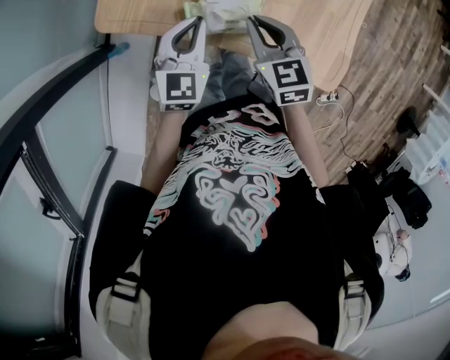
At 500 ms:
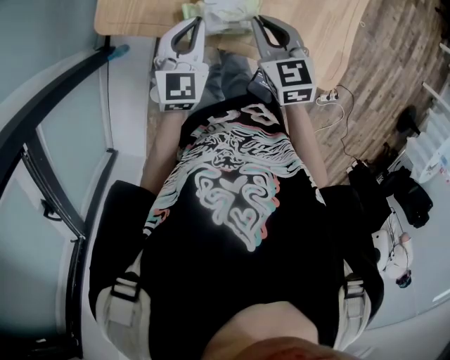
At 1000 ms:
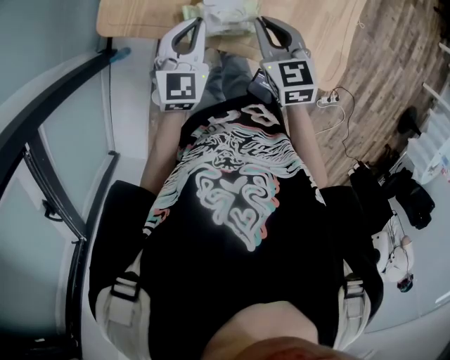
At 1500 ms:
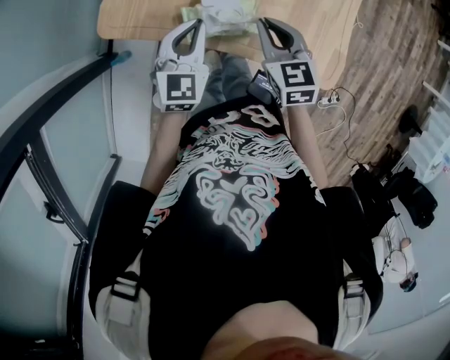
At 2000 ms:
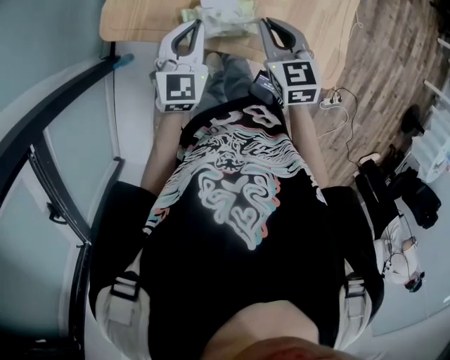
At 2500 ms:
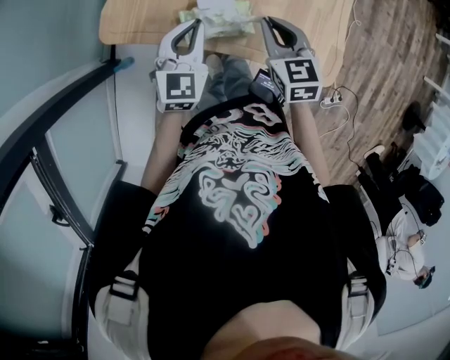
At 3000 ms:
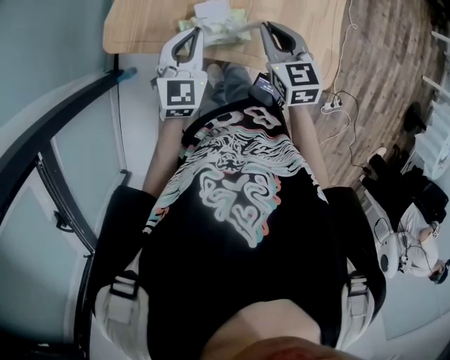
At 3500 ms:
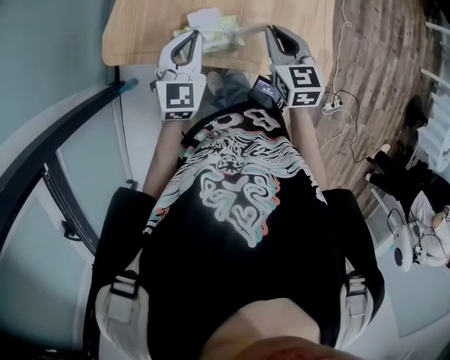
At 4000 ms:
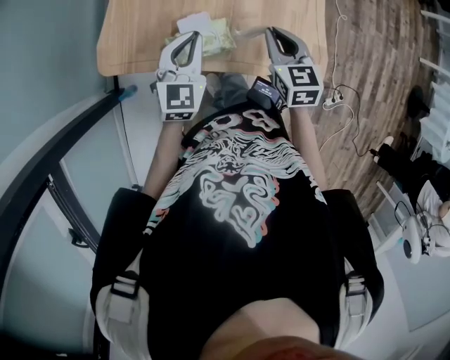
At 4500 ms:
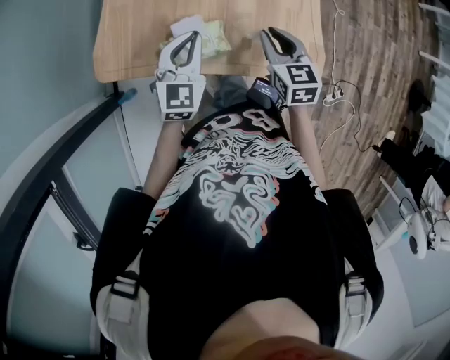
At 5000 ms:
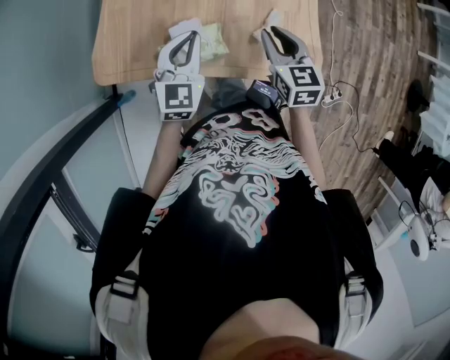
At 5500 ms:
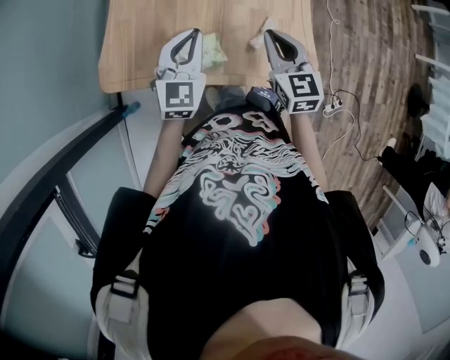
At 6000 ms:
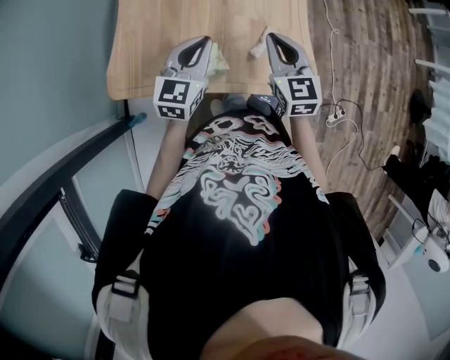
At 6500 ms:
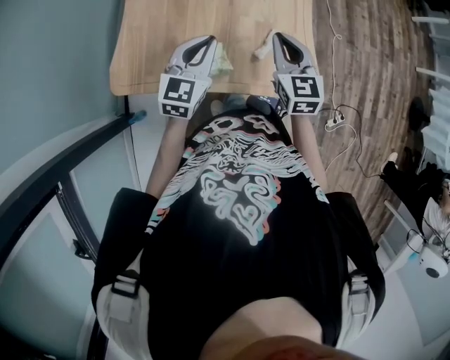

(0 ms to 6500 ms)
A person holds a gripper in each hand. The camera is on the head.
0 ms - 2000 ms: The grippers make only small movements.
2000 ms - 4500 ms: Both grippers travel together to the right, about 10 cm.
4500 ms - 6500 ms: The right gripper travels upward by approximately 10 cm. Meanwhile the left gripper goes approximately 5 cm upward.

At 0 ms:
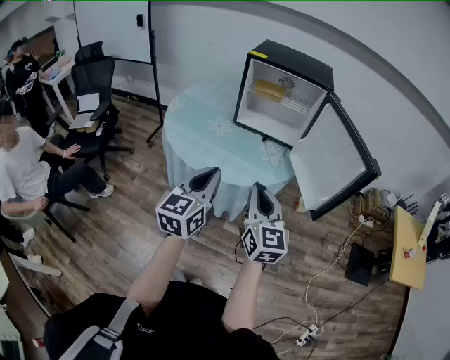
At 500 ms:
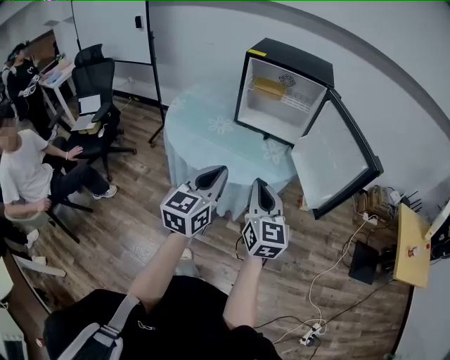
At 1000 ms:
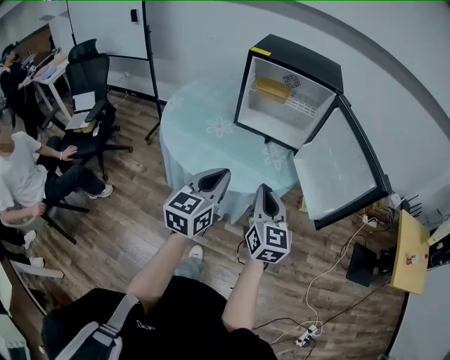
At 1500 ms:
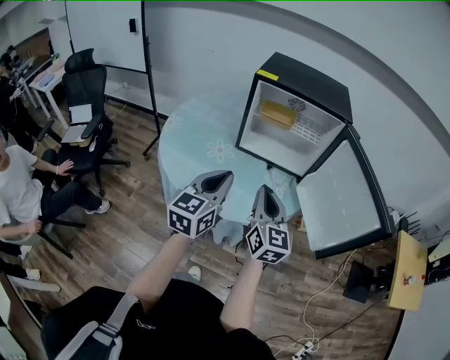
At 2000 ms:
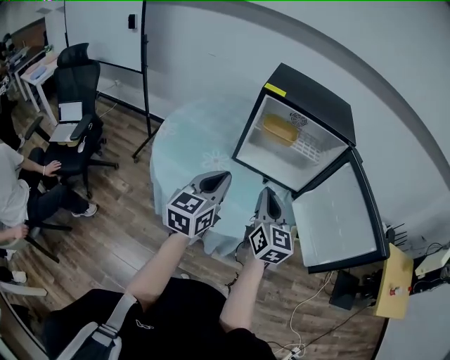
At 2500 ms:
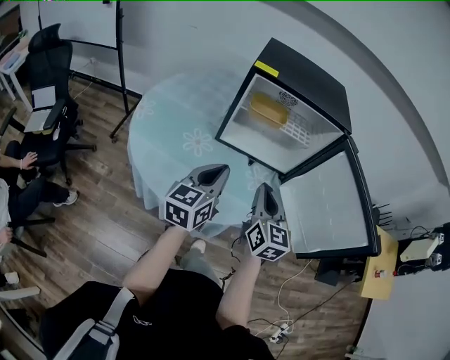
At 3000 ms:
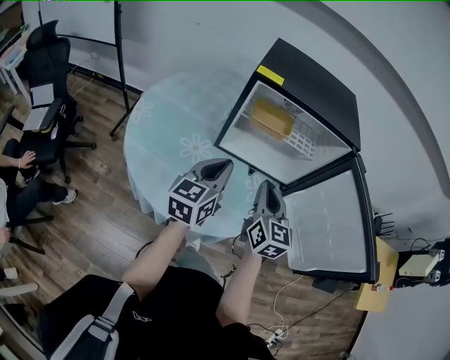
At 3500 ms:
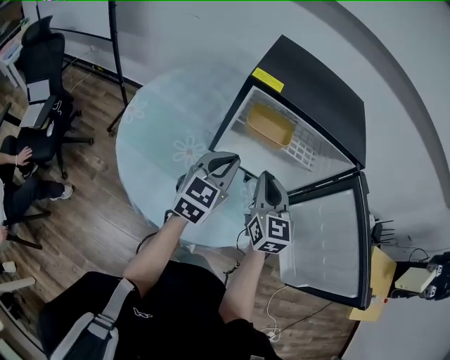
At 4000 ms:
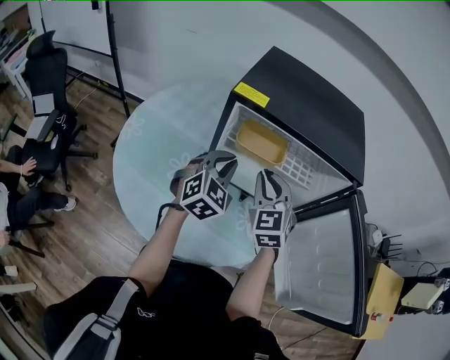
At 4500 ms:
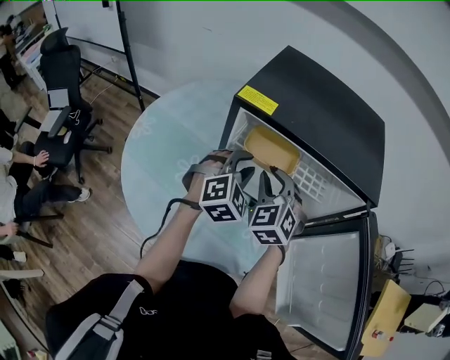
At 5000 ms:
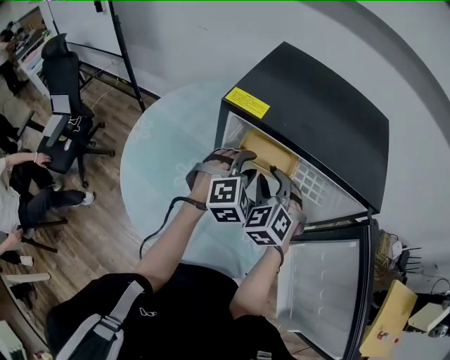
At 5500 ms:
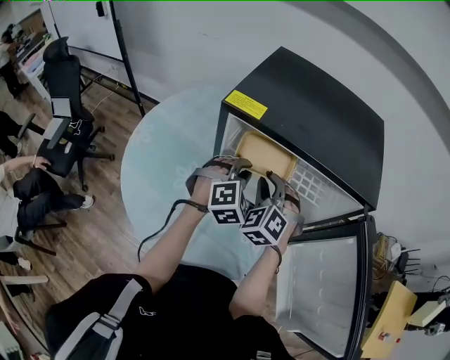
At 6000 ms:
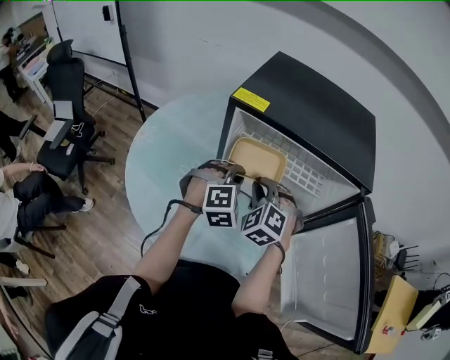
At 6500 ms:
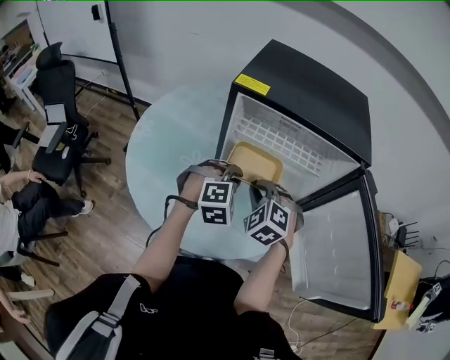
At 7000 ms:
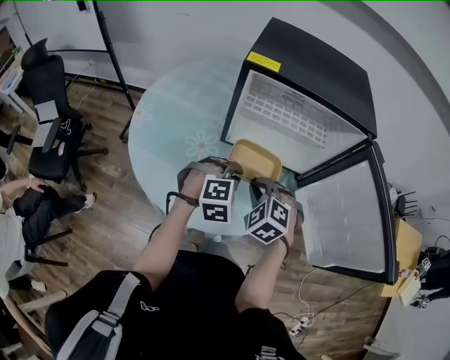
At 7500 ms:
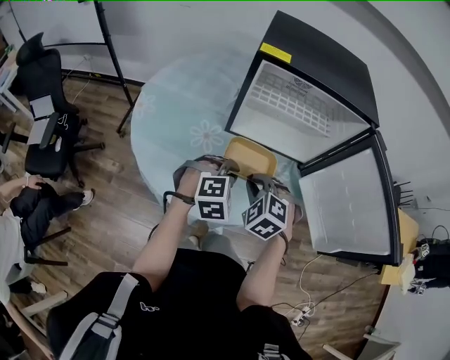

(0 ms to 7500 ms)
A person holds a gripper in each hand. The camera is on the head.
0 ms - 2000 ms: Both grippers move forward, about 25 cm.
2000 ms - 4000 ms: The two grippers go about 25 cm forward. The left gripper turns by approximately 40 degrees. Meanwhile the right gripper rotates approximately 40 degrees.
4000 ms - 5500 ms: The two grippers go some 10 cm forward and downward. The right gripper changes its angle by some 30 degrees. Meanwhile the left gripper rotates about 30 degrees, and opens, then closes again.
5500 ms - 7500 ms: The grippers both shift backward by some 25 cm. The right gripper turns by about 20 degrees; the left gripper changes its angle by about 20 degrees.

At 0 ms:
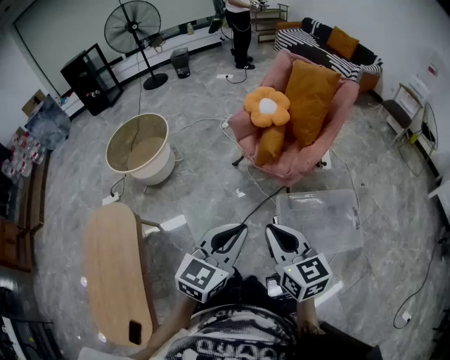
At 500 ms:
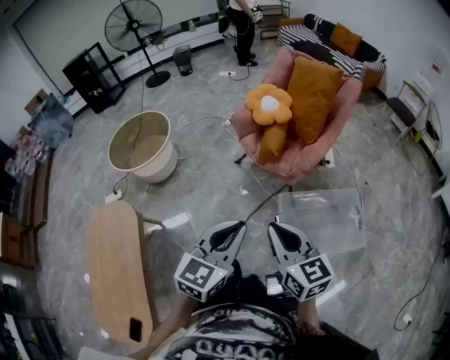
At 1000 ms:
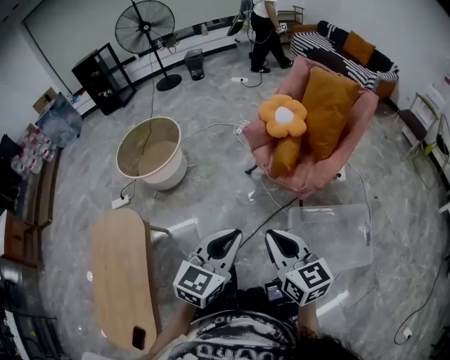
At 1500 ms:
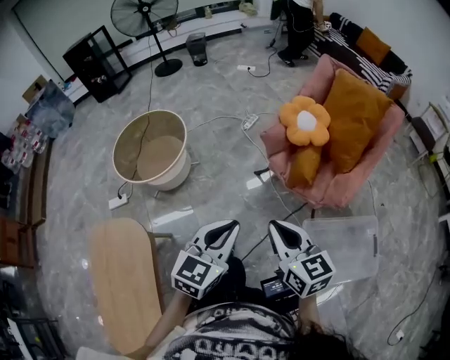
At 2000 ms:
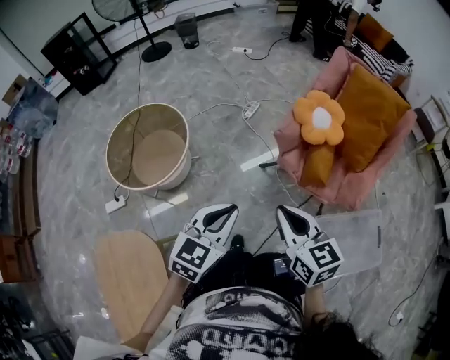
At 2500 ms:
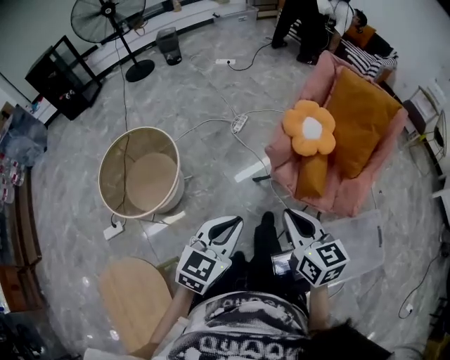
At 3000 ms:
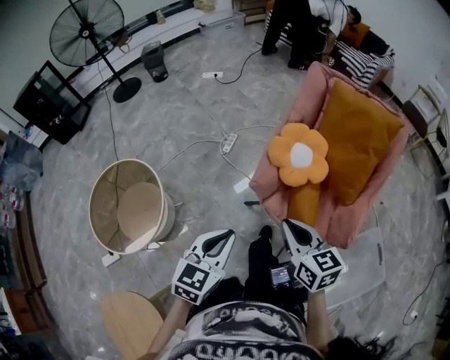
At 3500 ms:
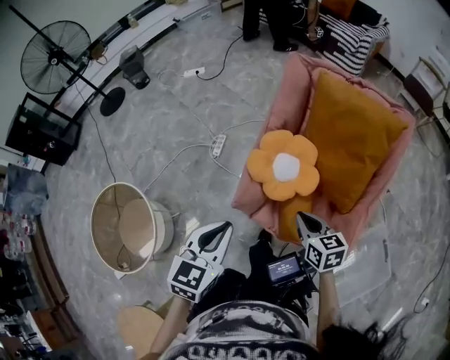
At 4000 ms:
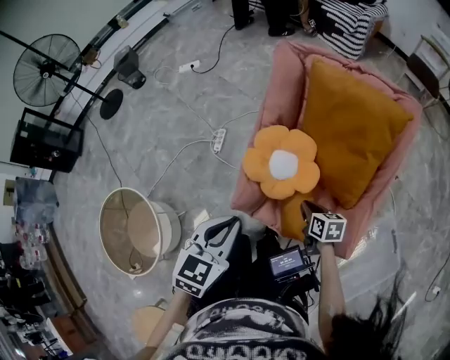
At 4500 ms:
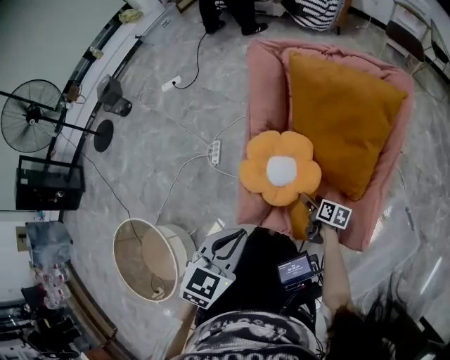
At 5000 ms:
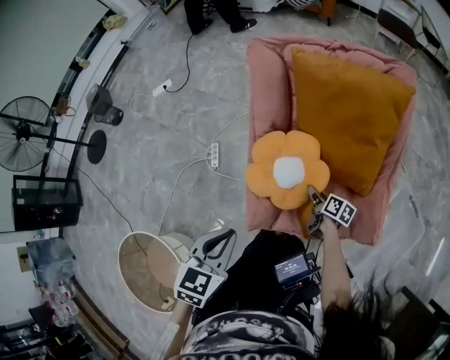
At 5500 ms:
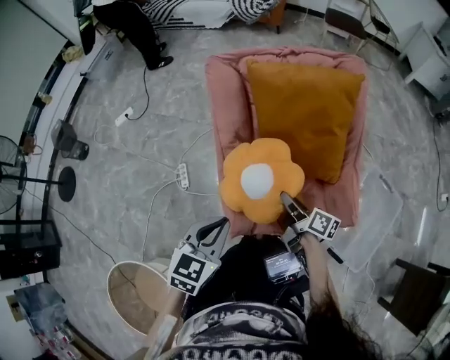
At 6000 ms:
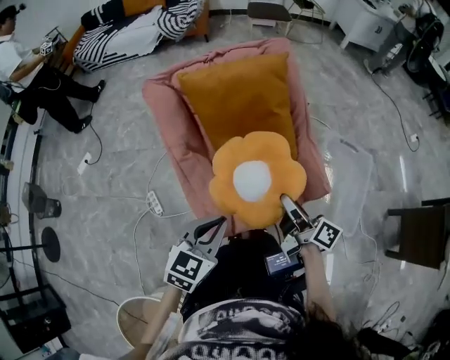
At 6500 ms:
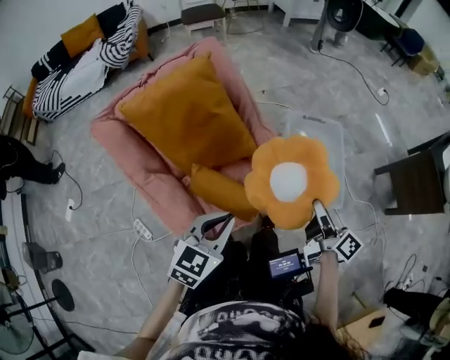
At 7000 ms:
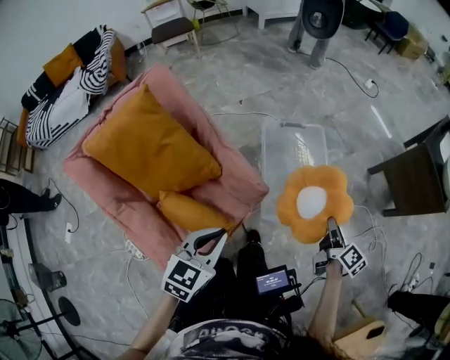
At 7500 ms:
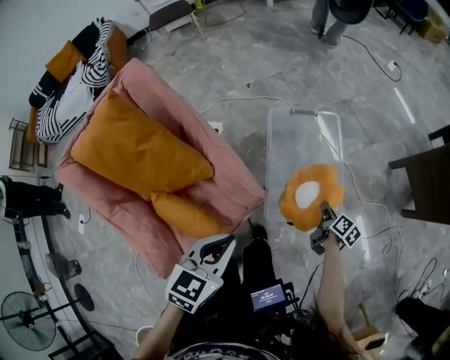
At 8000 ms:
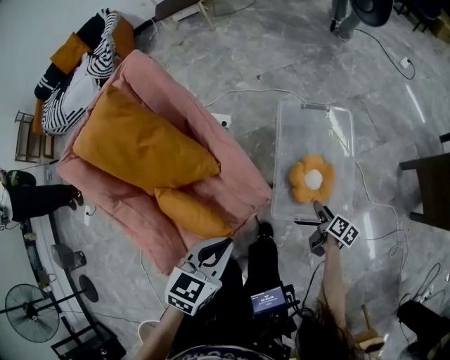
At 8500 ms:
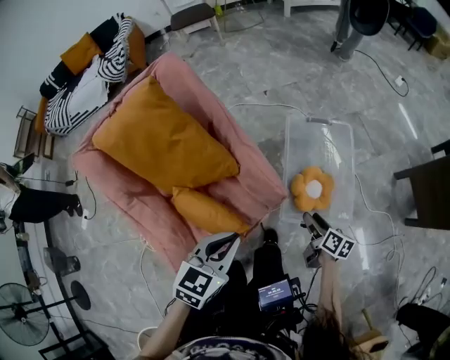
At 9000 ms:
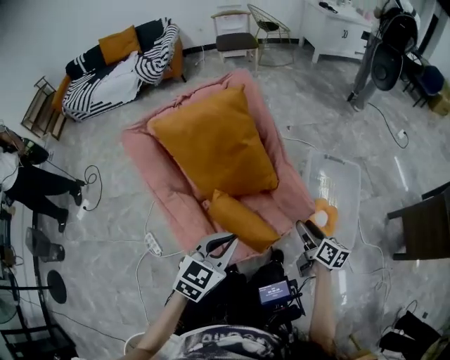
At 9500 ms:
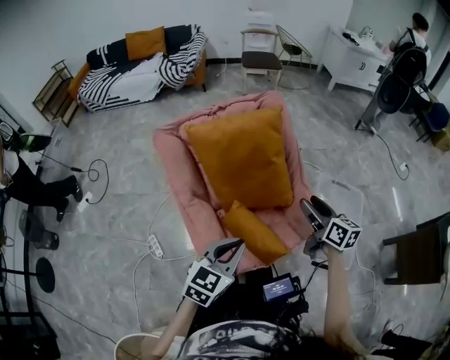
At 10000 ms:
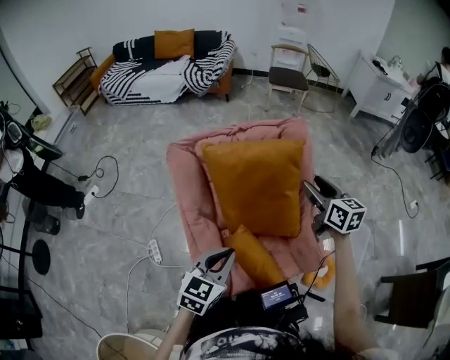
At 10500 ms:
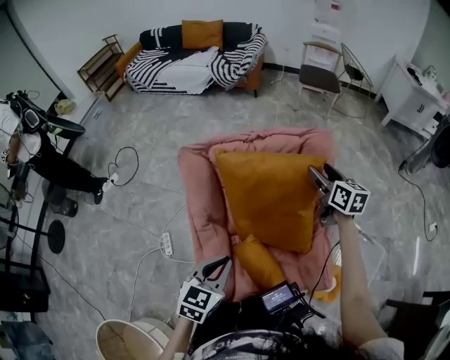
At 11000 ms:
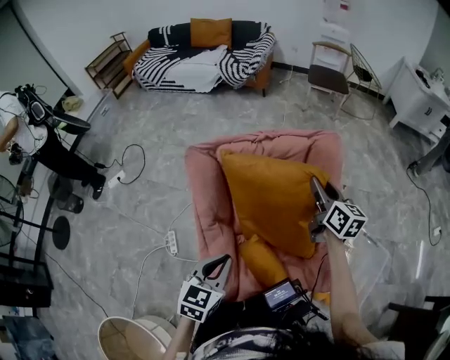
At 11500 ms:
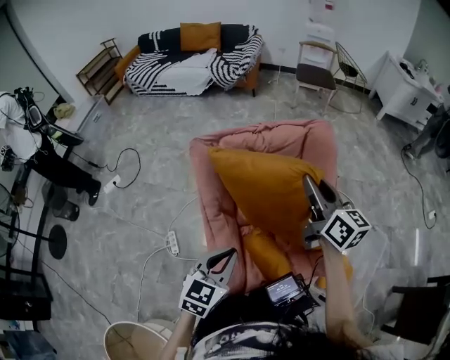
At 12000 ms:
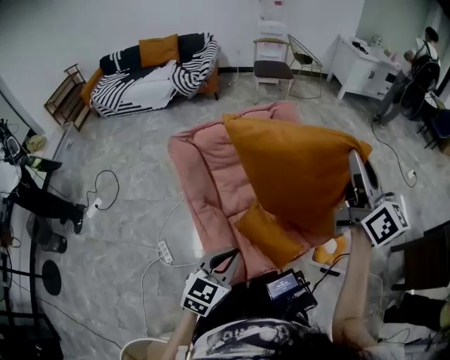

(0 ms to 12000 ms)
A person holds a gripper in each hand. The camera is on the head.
0 ms - 2000 ms: The two grippers travel together, forward and to the left, about 40 cm.
2000 ms - 4000 ms: Both grippers are carried forward and to the right, about 50 cm. The right gripper moves downward, approximately 30 cm, and swivels roughly 40 degrees.
4000 ms - 6000 ms: The right gripper shifts roughly 15 cm upward, tips its fingers upward by about 40 degrees, and opens, then closes again. Meanwhile the left gripper shifts by about 10 cm, and changes its angle by some 50 degrees.
6000 ms - 8000 ms: The left gripper shifts by about 35 cm, and turns by about 20 degrees. The right gripper shifts by roughly 60 cm, tilts its fingers some 30 degrees downward, and opens up.
8000 ms - 10000 ms: The left gripper ends up about 35 cm from where it was, and swivels about 30 degrees; the right gripper moves roughly 70 cm, and twists roughly 60 degrees counterclockwise, seen from behind.
10000 ms - 12000 ms: The right gripper heads upward and backward, covering about 25 cm, points its fingers about 30 degrees further upward, and closes, while the left gripper goes about 10 cm backward.
